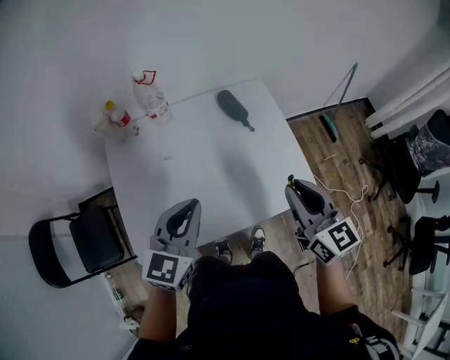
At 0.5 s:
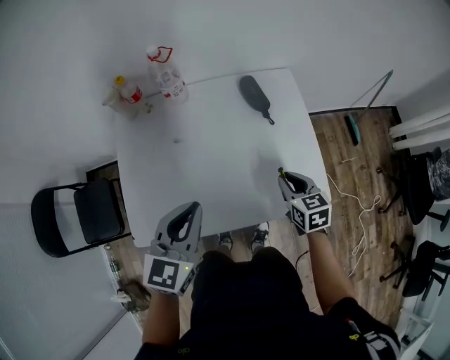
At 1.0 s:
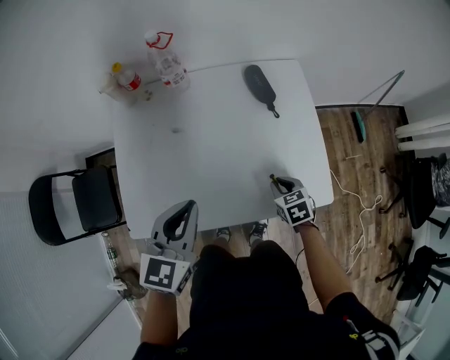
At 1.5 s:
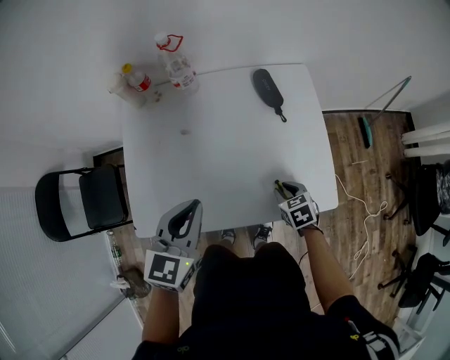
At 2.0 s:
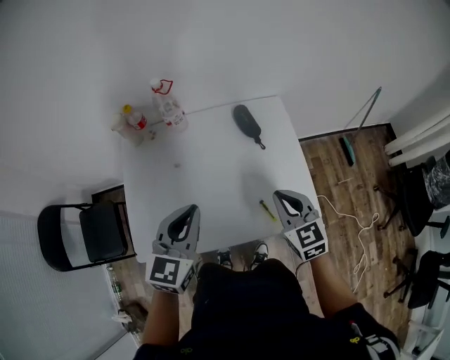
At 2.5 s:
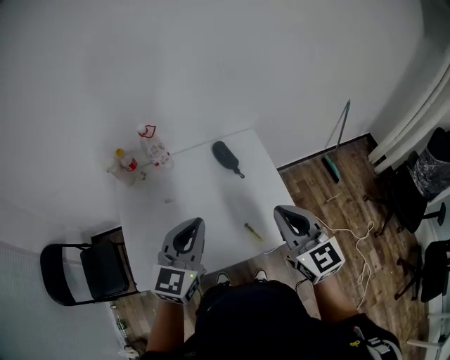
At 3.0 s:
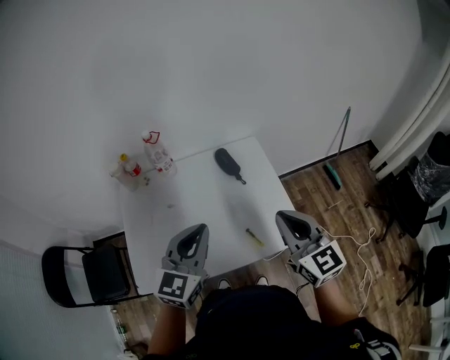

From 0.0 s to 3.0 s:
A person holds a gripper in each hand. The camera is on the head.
From 0.0 s to 1.5 s: The left gripper is displaced downward by roughly 5 cm, while the right gripper moves downward, some 30 cm, and points its fingers about 50 degrees further downward.
From 1.5 s to 3.0 s: The right gripper goes some 40 cm upward, and tilts its fingers about 50 degrees upward, while the left gripper shifts approximately 15 cm upward and to the right, and changes its angle by some 20 degrees.

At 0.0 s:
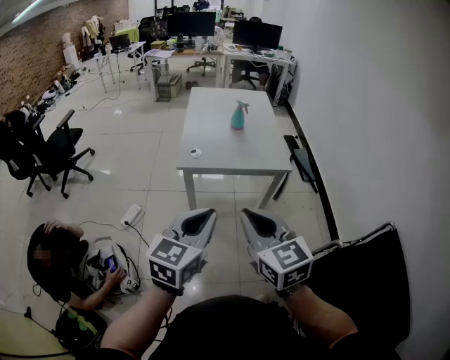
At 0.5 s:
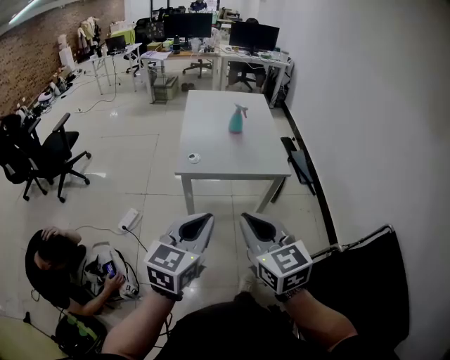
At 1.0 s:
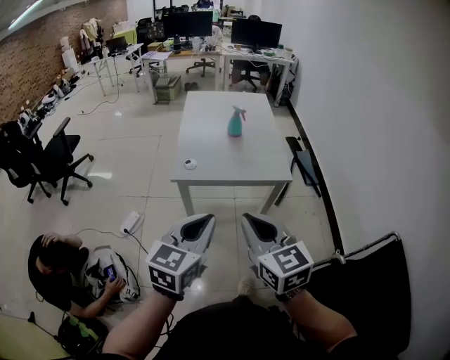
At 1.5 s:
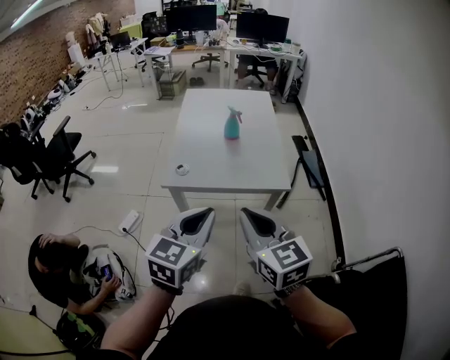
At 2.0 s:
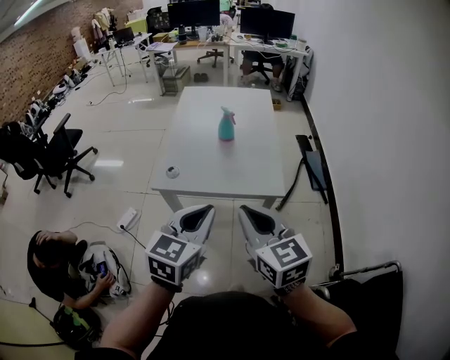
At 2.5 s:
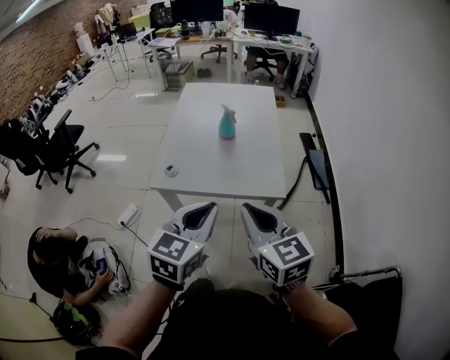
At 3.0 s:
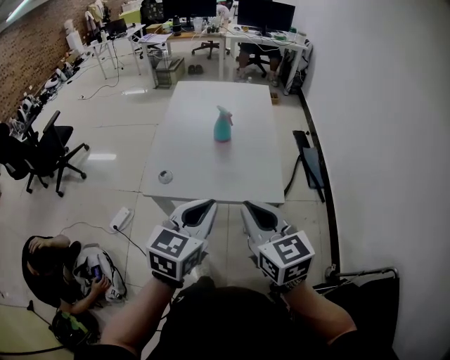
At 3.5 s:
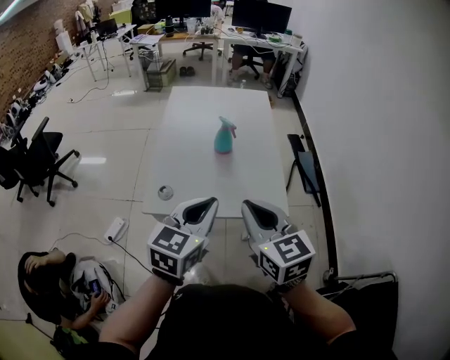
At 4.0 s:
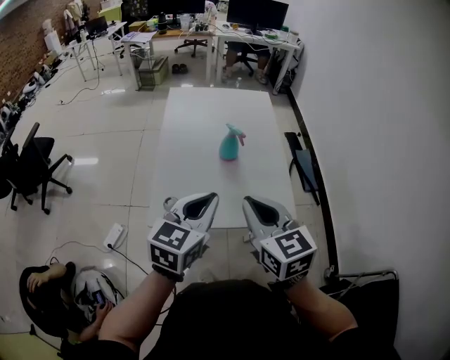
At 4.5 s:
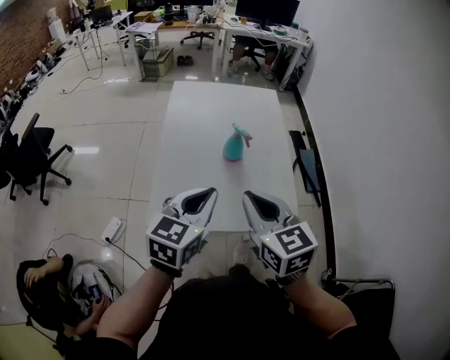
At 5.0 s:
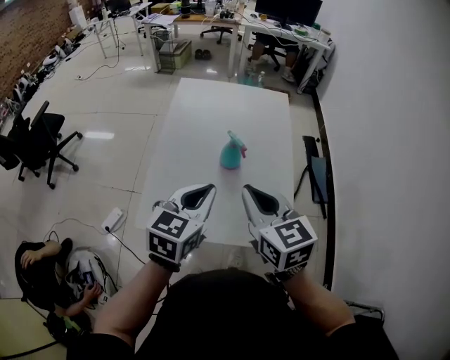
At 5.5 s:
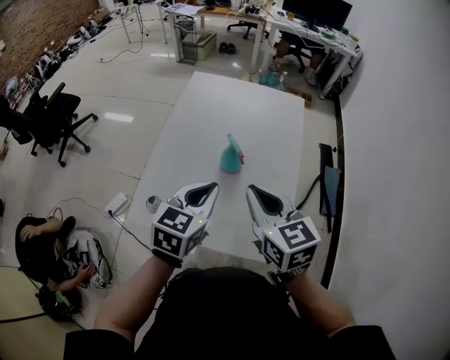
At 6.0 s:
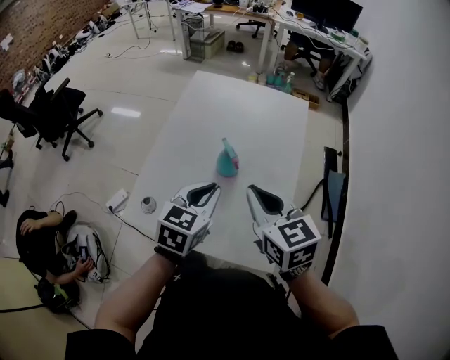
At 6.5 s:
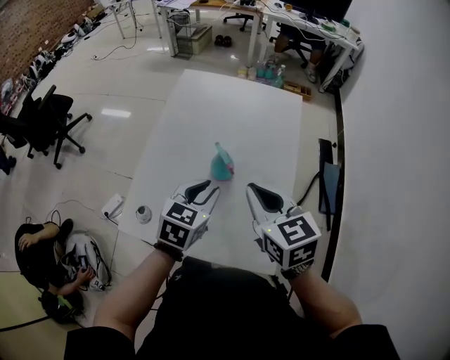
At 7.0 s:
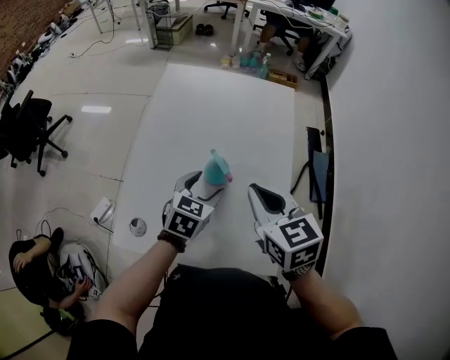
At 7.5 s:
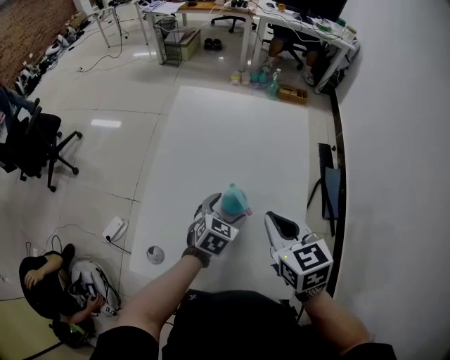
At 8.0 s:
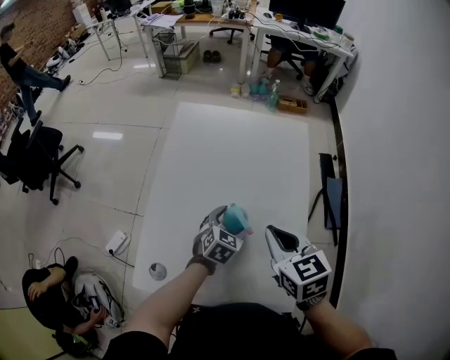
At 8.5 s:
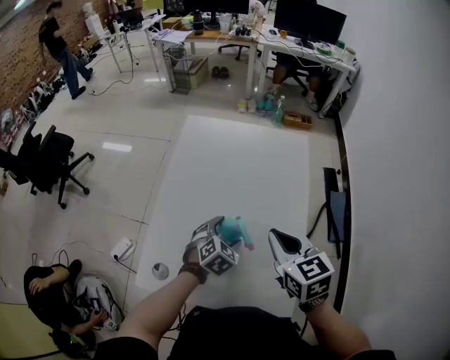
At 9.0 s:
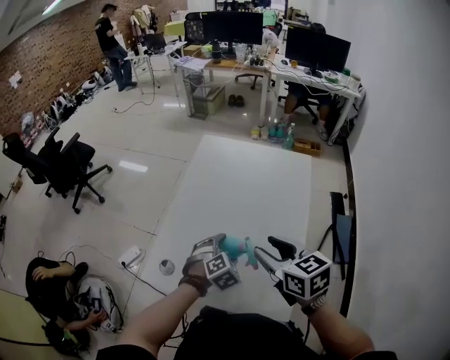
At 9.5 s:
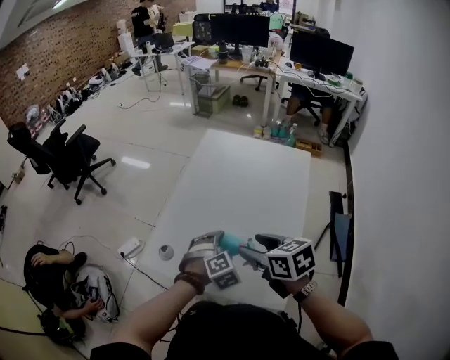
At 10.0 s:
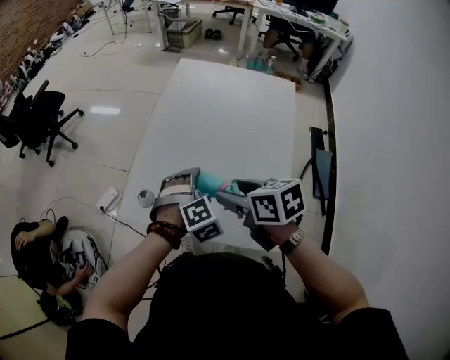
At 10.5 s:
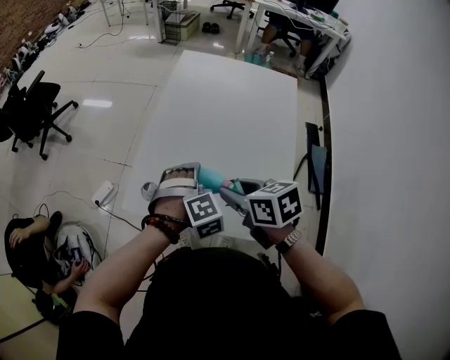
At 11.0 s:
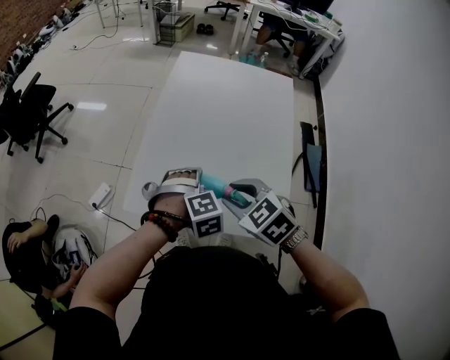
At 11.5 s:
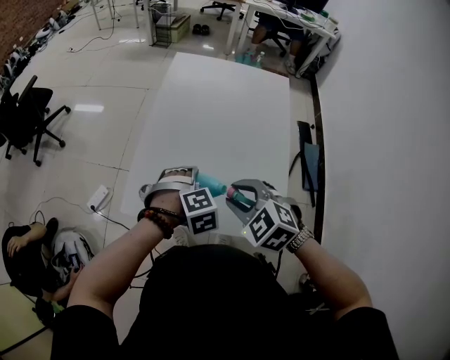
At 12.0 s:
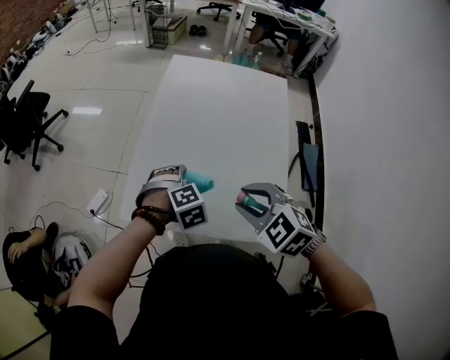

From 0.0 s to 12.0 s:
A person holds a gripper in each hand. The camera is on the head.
From 0.0 s to 2.0 s: Both grippers travel together forward and to the right, roughly 20 cm.
From 2.0 s to 4.0 s: The two grippers go approximately 20 cm forward.
From 4.0 s to 6.0 s: The right gripper travels forward and to the right by about 20 cm, and changes its angle by about 20 degrees; the left gripper moves forward, to the right and downward, approximately 20 cm, and rotates approximately 20 degrees.
From 6.0 s to 8.0 s: The right gripper moves forward and downward, approximately 10 cm, while the left gripper moves downward and forward, approximately 20 cm, changes its angle by approximately 20 degrees, and opens up.
From 8.0 s to 10.0 s: The left gripper moves approximately 15 cm, and changes its angle by about 50 degrees. The right gripper shifts by roughly 15 cm, changes its angle by approximately 30 degrees, and opens.
From 10.0 s to 12.0 s: The left gripper is displaced to the left by roughly 5 cm; the right gripper rotates around the line of its fingers by approximately 50 degrees, counterclockwise from behind, and closes.

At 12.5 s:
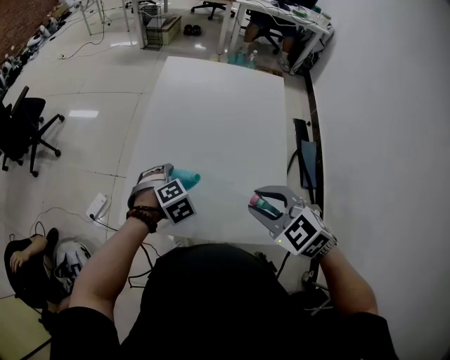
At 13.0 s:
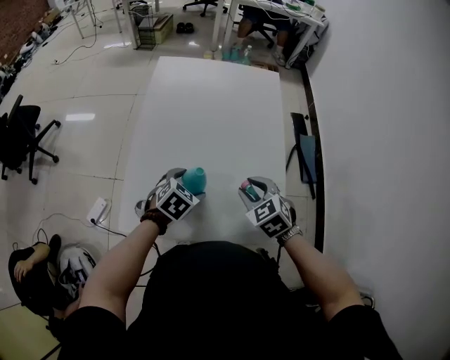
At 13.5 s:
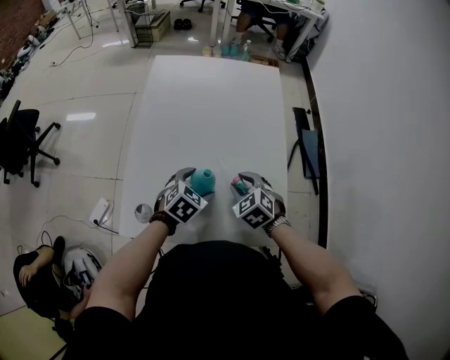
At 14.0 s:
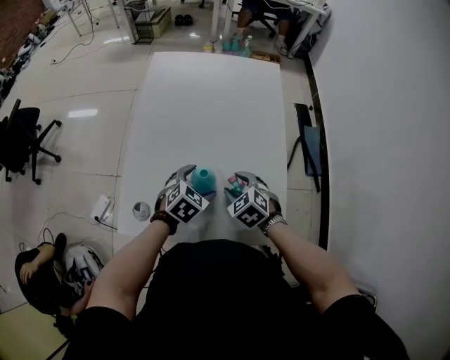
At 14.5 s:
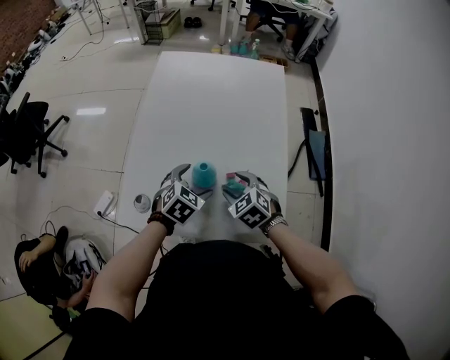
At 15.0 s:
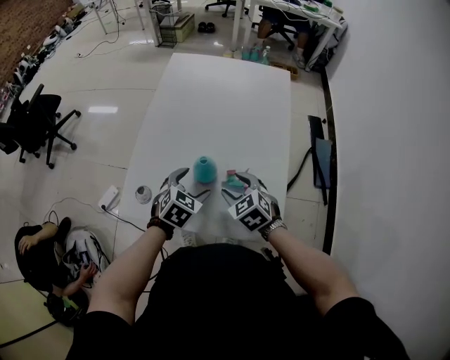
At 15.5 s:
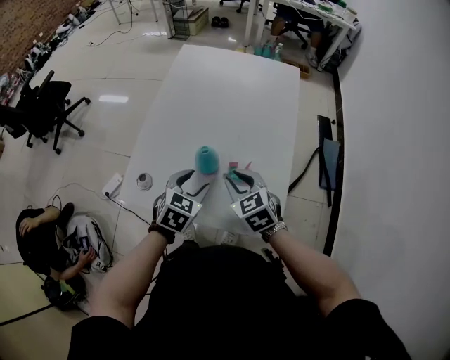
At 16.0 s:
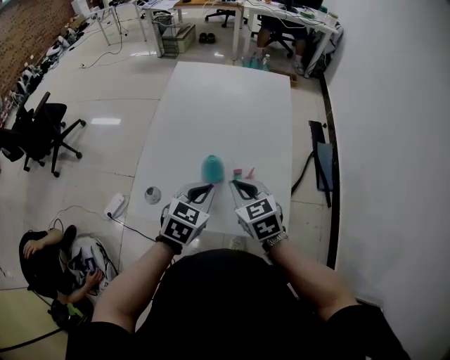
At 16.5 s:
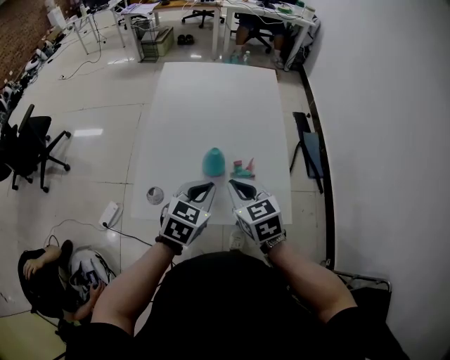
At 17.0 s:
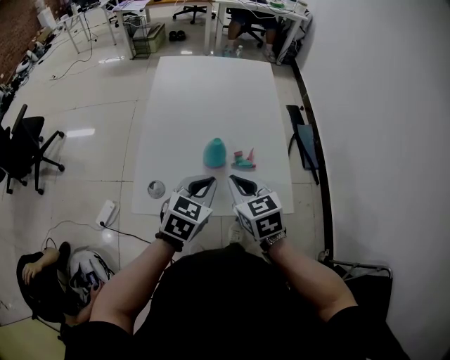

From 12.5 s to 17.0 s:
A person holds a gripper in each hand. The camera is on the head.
From 12.5 s to 14.5 s: The left gripper shifts by some 10 cm, and rotates some 30 degrees, while the right gripper heads downward, covering about 15 cm, and opens.
From 14.5 s to 17.0 s: Both grippers move upward and backward, roughly 15 cm. The right gripper swivels roughly 30 degrees, and closes its fingers. The left gripper swivels approximately 20 degrees, and closes.

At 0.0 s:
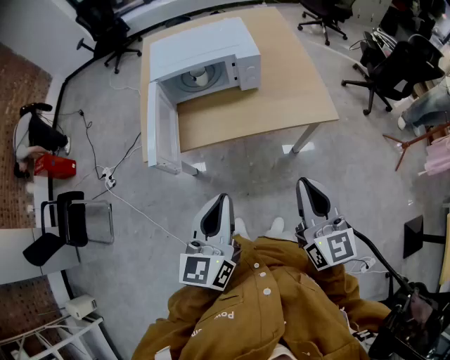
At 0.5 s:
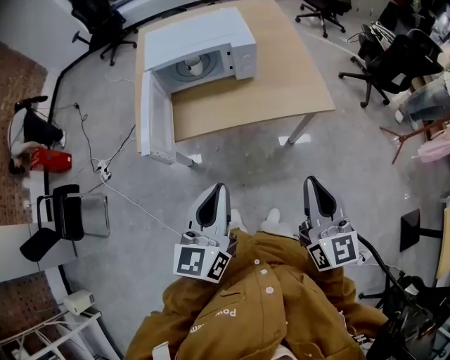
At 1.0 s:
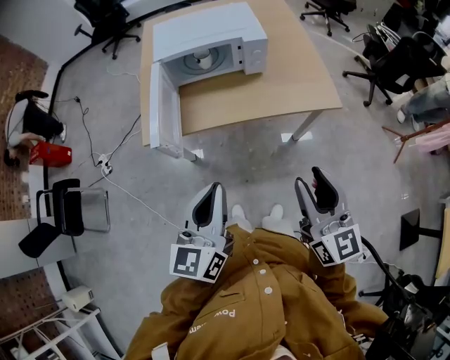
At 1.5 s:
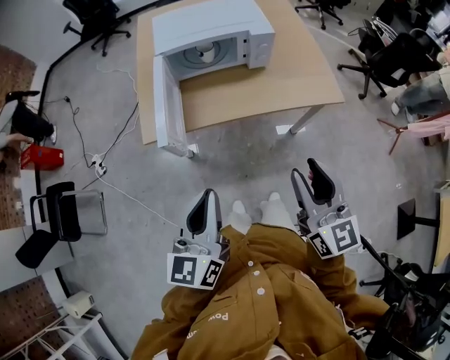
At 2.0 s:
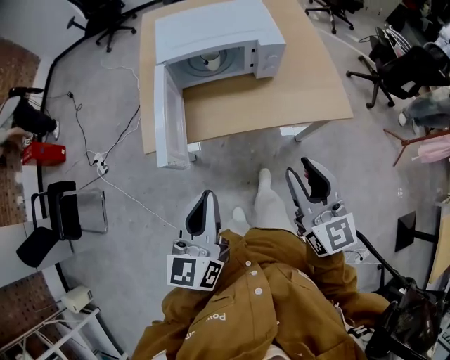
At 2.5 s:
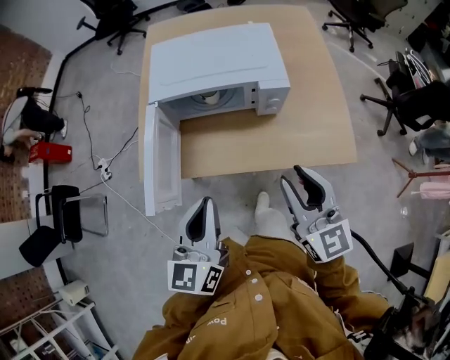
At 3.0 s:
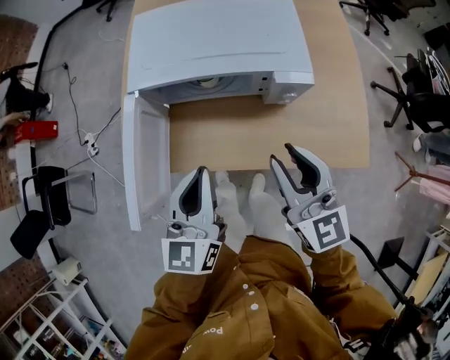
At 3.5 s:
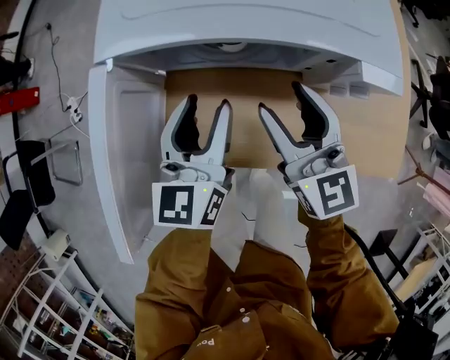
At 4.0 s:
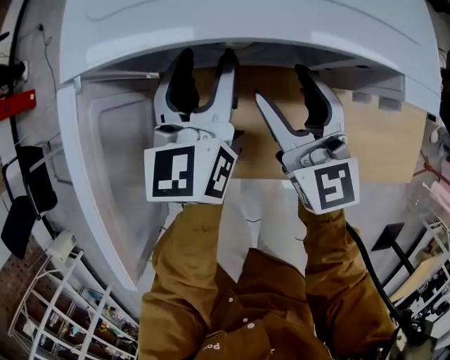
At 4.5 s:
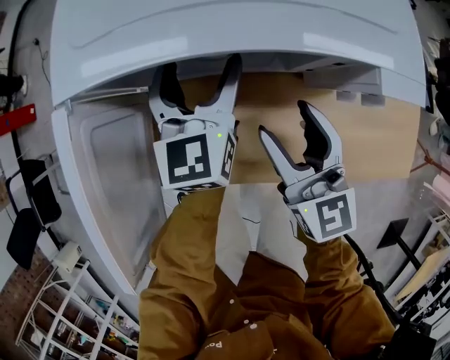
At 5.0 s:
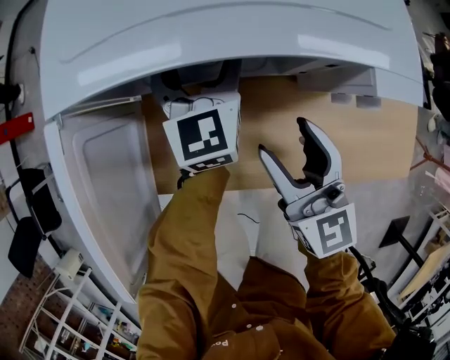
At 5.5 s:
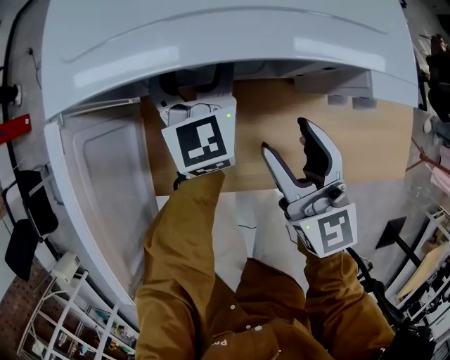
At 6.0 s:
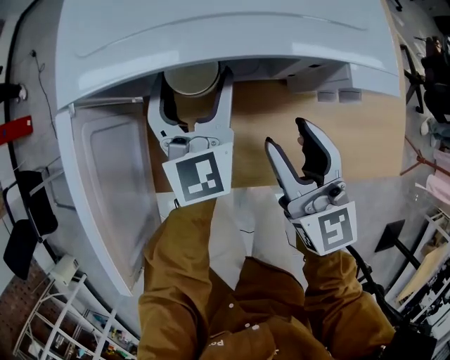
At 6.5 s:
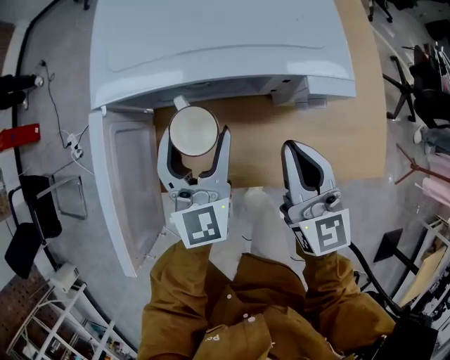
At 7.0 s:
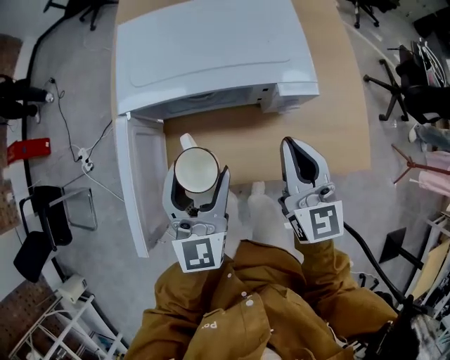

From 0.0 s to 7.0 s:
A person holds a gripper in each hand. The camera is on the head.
From 0.0 s to 2.0 s: The grippers both shift to the left and forward by some 10 cm. The right gripper opens.
From 2.0 s to 3.5 s: The grippers both shift forward and downward by approximately 40 cm. The left gripper opens its fingers, while the right gripper opens.
From 3.5 s to 5.0 s: The left gripper goes some 15 cm forward, to the right and downward, and opens up. The right gripper is displaced downward by approximately 5 cm.
From 5.0 s to 7.0 s: The right gripper goes some 15 cm upward, and closes its fingers. The left gripper goes roughly 25 cm backward and upward.
